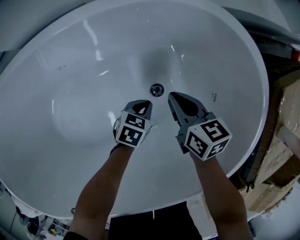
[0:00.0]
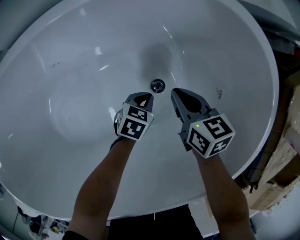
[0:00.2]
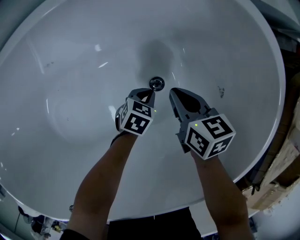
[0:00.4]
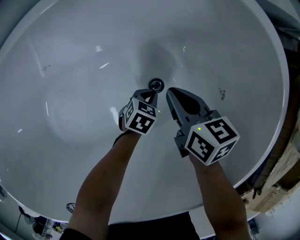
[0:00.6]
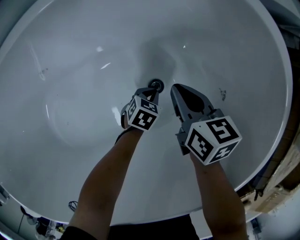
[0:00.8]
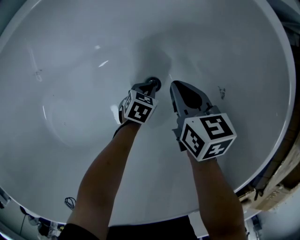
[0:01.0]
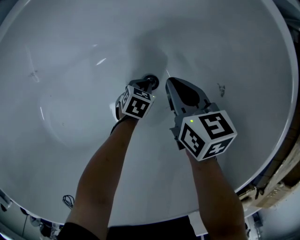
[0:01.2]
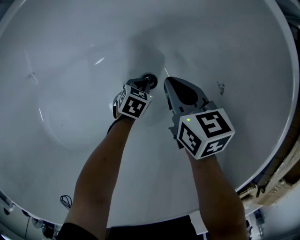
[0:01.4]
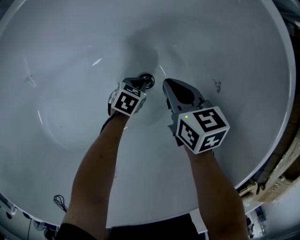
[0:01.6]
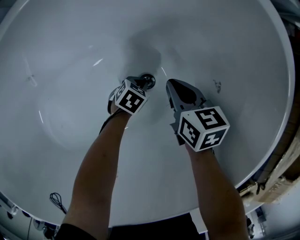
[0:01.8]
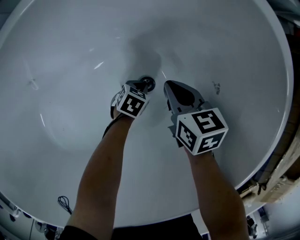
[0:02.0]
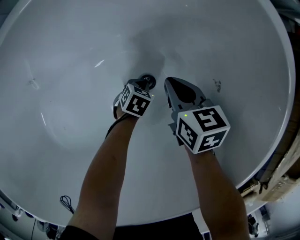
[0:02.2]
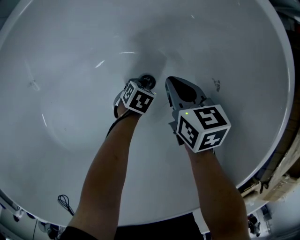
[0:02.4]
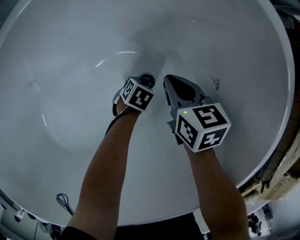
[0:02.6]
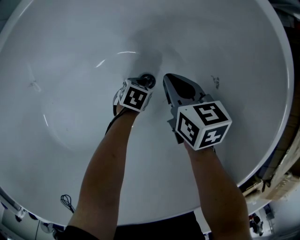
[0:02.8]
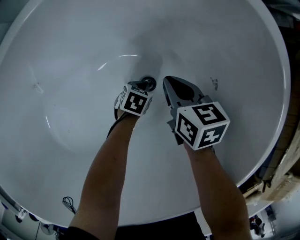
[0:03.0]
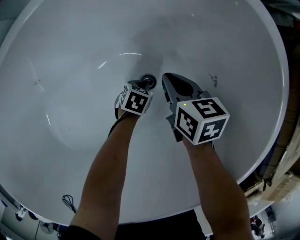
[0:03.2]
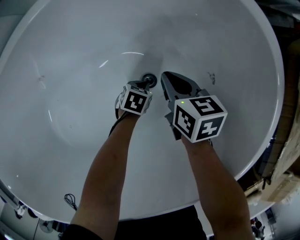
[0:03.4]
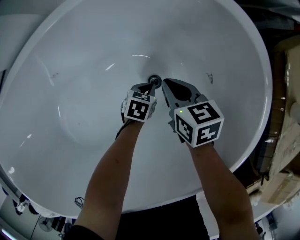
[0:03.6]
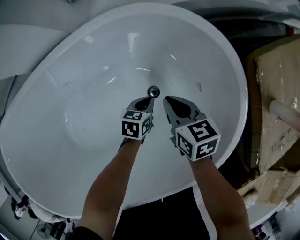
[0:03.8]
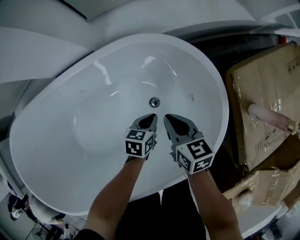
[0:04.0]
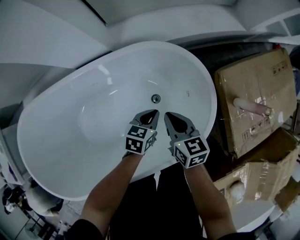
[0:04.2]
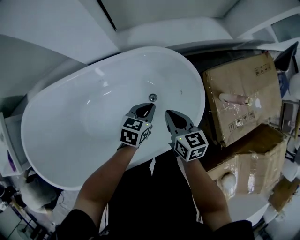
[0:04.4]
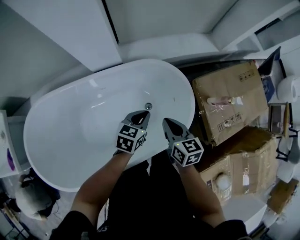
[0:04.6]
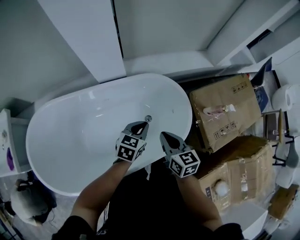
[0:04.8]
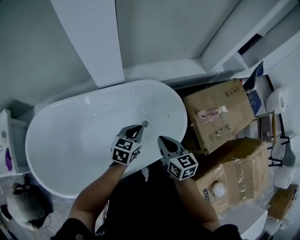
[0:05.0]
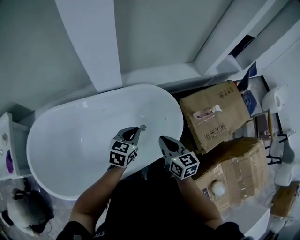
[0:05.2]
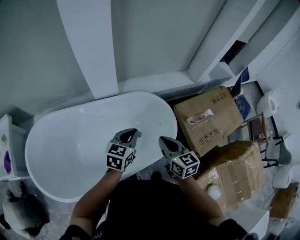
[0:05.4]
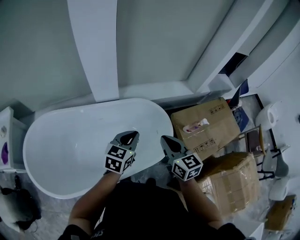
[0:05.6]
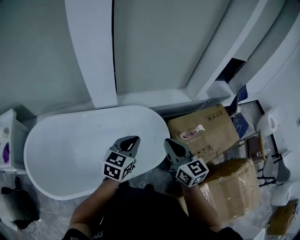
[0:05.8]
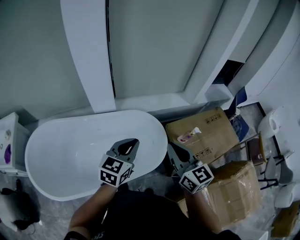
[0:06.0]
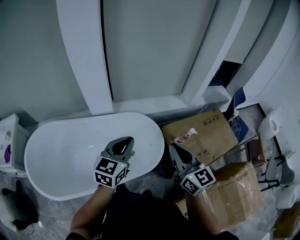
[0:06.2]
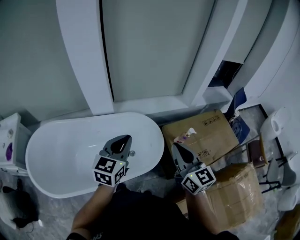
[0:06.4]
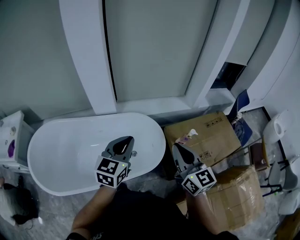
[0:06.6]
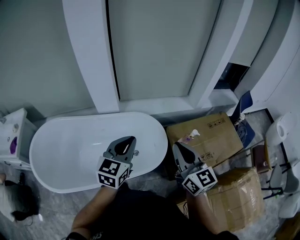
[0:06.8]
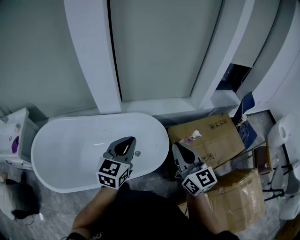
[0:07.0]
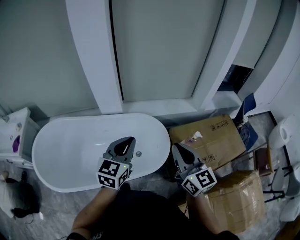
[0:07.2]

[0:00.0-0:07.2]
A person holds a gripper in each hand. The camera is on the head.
0:00.0 to 0:01.4: The right gripper shifts approximately 10 cm downward, while the left gripper shifts about 15 cm downward.
0:01.4 to 0:02.8: The grippers make only small movements.
0:02.8 to 0:04.4: Both grippers travel together upward, approximately 50 cm. The left gripper rotates about 30 degrees.
0:04.4 to 0:05.8: The left gripper goes roughly 40 cm upward and backward, and turns by approximately 30 degrees; the right gripper heads upward, covering some 35 cm, and changes its angle by about 30 degrees.
0:05.8 to 0:07.2: The left gripper goes some 10 cm upward and to the right. Meanwhile the right gripper moves to the right and upward, approximately 10 cm.

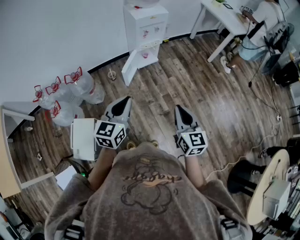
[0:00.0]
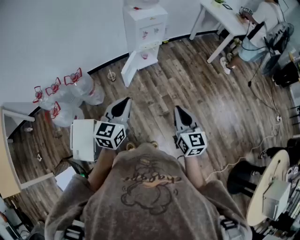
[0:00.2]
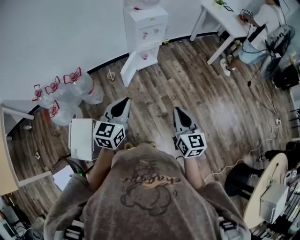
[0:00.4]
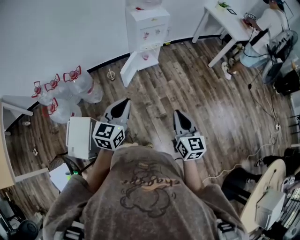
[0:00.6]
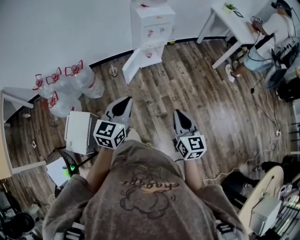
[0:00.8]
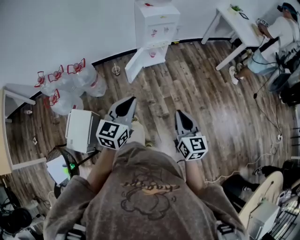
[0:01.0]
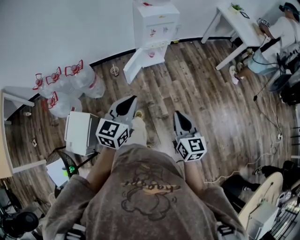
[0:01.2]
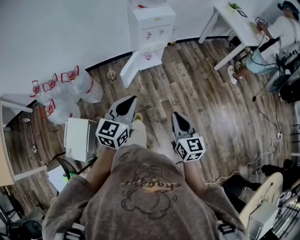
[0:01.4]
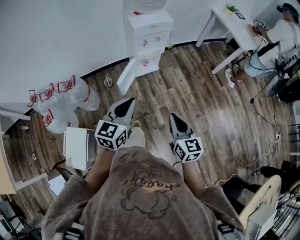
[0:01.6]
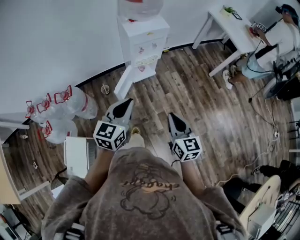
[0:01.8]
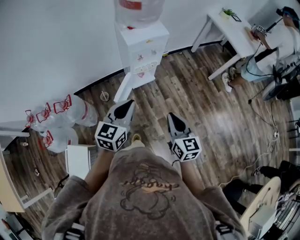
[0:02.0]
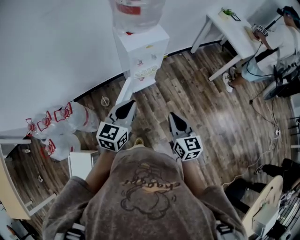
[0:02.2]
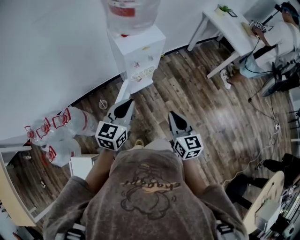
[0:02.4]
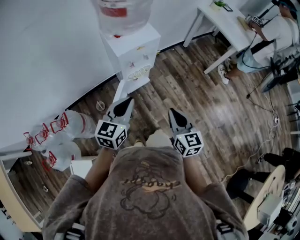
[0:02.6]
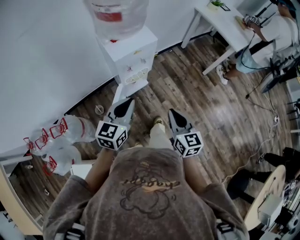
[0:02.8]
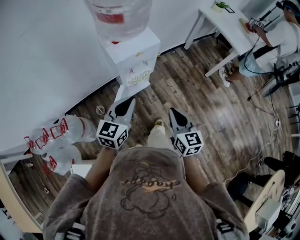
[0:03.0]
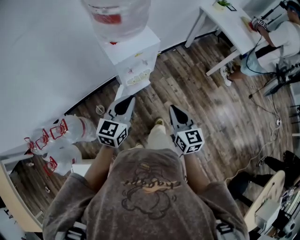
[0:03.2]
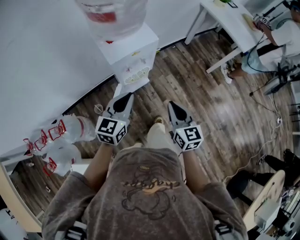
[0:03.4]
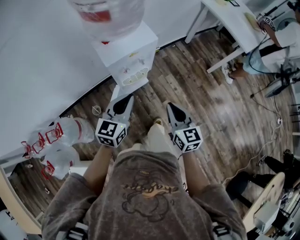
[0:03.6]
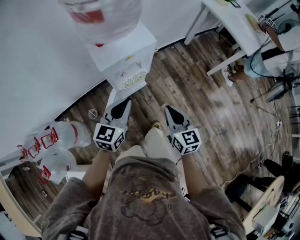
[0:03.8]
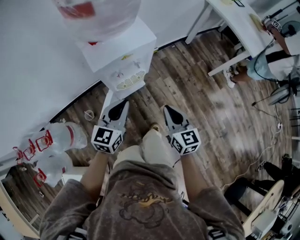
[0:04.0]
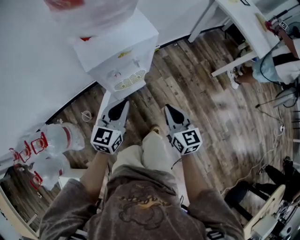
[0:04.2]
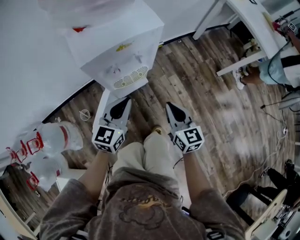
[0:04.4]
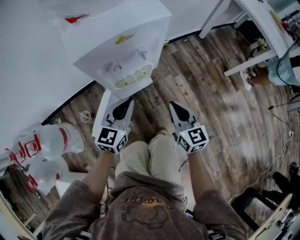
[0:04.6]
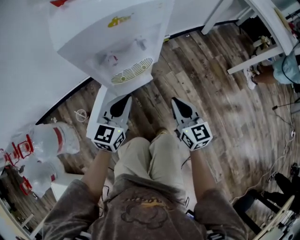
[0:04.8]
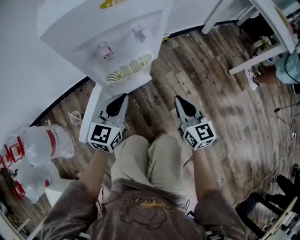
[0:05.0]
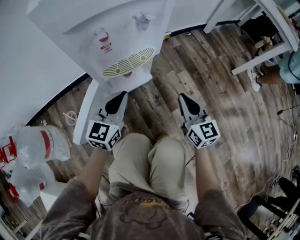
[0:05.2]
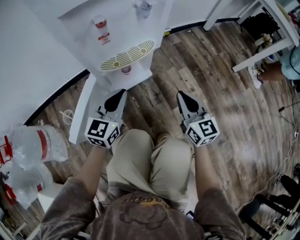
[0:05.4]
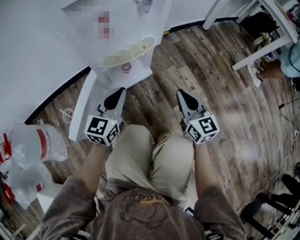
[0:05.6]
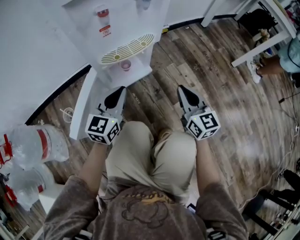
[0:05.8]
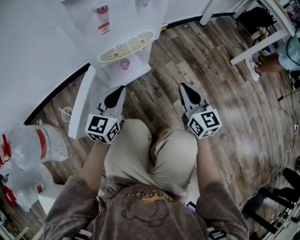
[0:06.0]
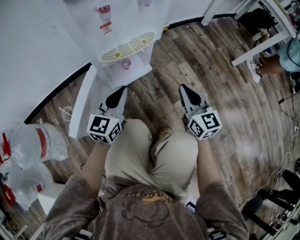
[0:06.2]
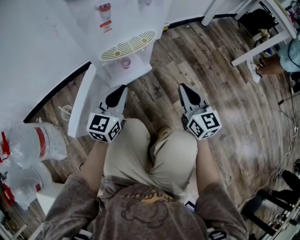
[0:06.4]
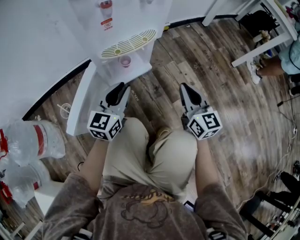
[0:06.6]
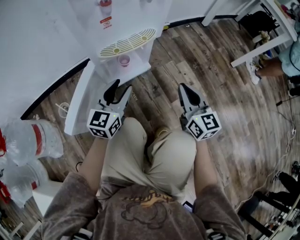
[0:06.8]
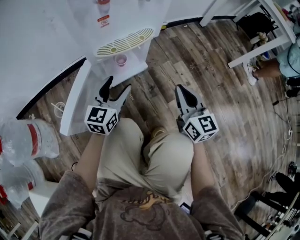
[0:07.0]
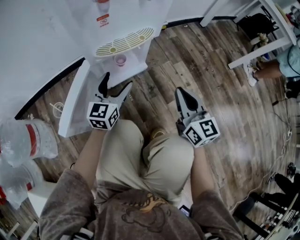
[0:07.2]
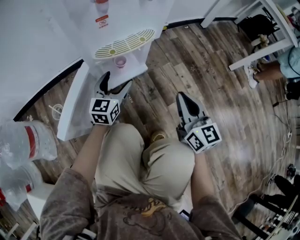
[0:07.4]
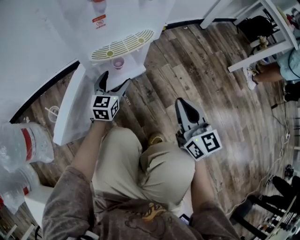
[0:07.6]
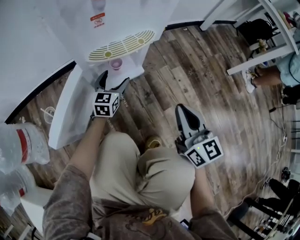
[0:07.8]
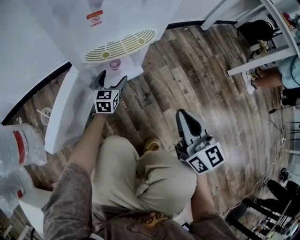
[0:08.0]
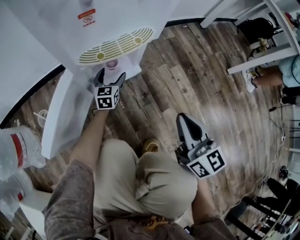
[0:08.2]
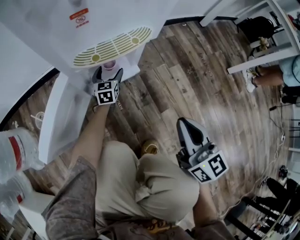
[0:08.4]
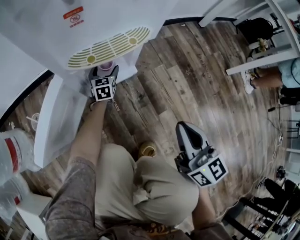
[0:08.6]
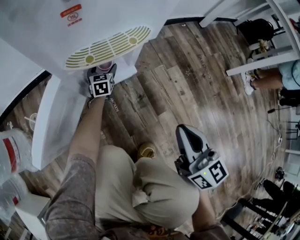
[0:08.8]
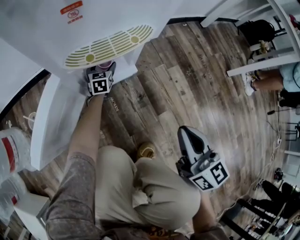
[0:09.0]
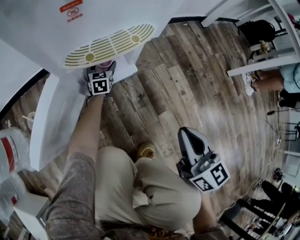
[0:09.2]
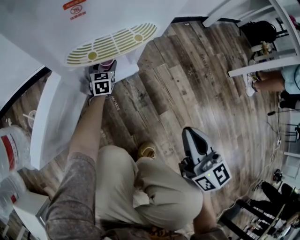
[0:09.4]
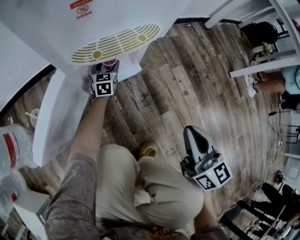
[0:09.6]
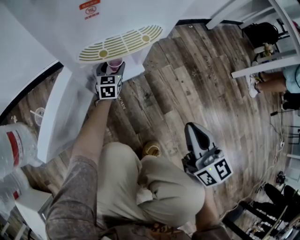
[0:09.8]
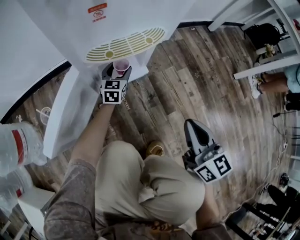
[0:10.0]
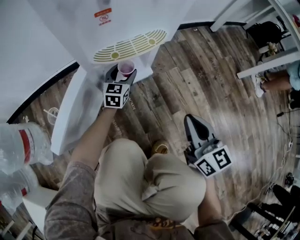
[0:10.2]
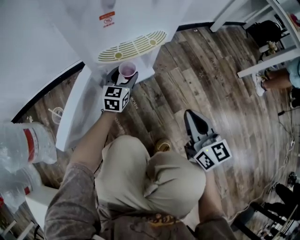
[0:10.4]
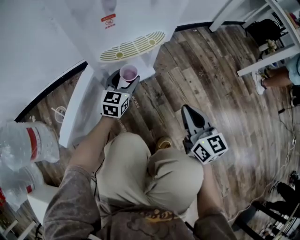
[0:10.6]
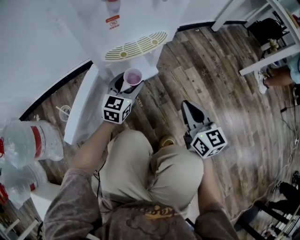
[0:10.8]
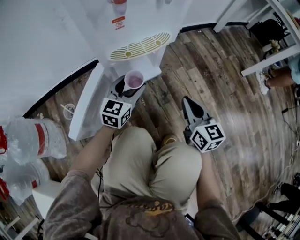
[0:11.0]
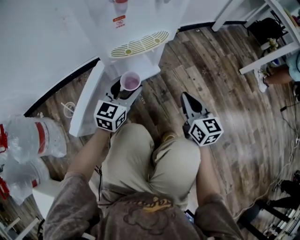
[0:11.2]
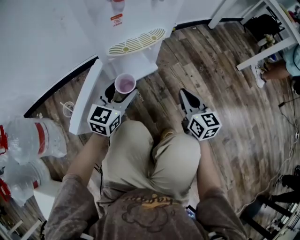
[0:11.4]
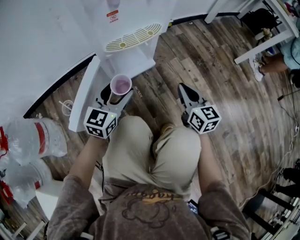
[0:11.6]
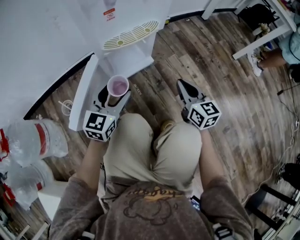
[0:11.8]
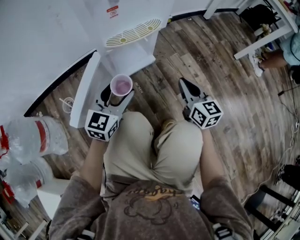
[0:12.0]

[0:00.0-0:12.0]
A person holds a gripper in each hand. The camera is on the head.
0:00.0 to 0:01.6: Both grippers travel together forward, approximately 15 cm.
0:01.6 to 0:03.0: Both grippers travel together forward, some 30 cm.
0:03.0 to 0:04.4: Both grippers move downward and forward, some 30 cm.
0:04.4 to 0:06.0: Both grippers move downward, about 30 cm.
0:06.0 to 0:07.6: The left gripper goes some 15 cm downward and forward, and opens up.
0:07.6 to 0:09.0: The left gripper goes about 25 cm downward and forward, and turns by about 20 degrees.
0:09.0 to 0:10.4: The left gripper moves upward and backward, about 20 cm, and changes its angle by about 20 degrees.
0:10.4 to 0:12.0: The left gripper shifts about 25 cm backward and upward.

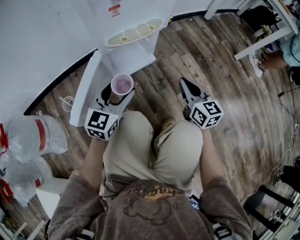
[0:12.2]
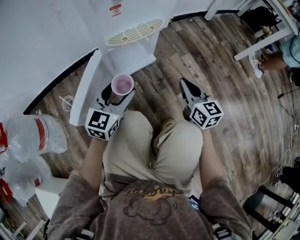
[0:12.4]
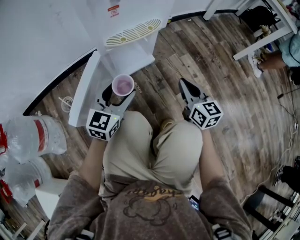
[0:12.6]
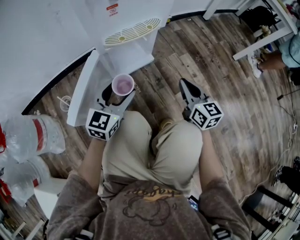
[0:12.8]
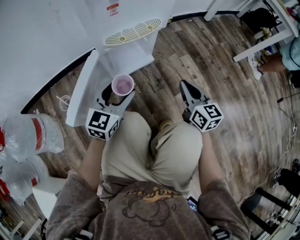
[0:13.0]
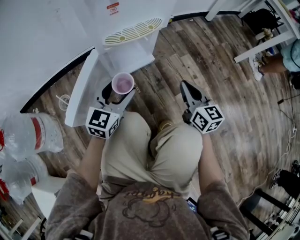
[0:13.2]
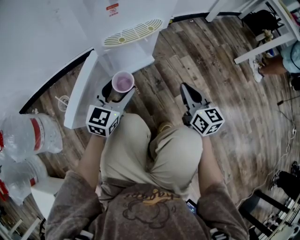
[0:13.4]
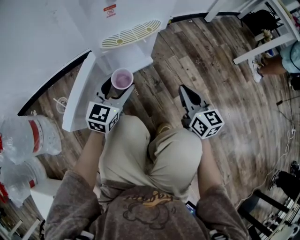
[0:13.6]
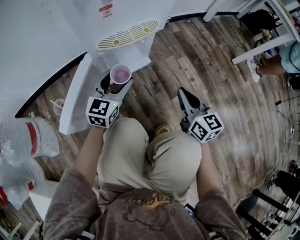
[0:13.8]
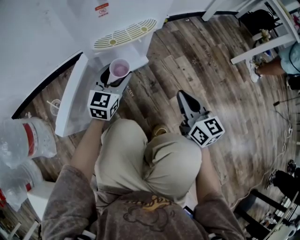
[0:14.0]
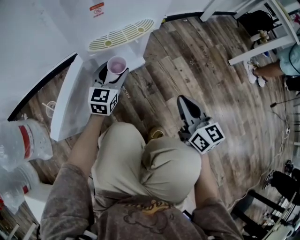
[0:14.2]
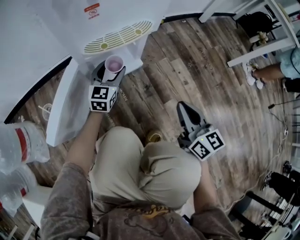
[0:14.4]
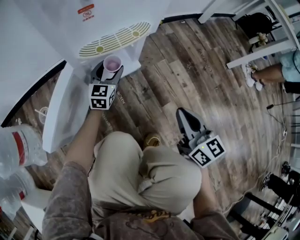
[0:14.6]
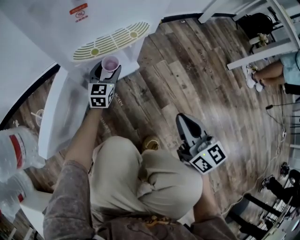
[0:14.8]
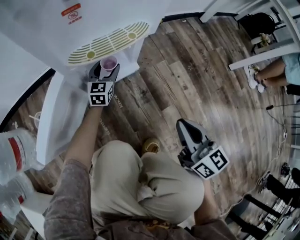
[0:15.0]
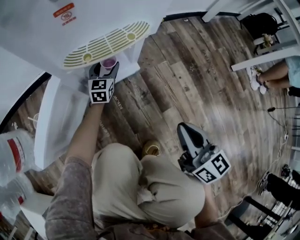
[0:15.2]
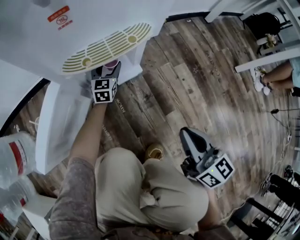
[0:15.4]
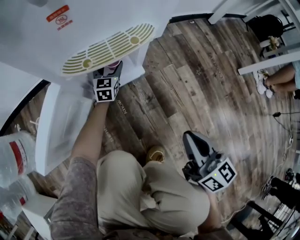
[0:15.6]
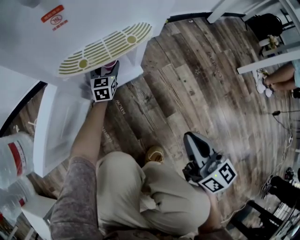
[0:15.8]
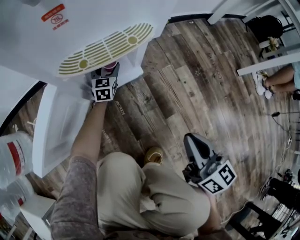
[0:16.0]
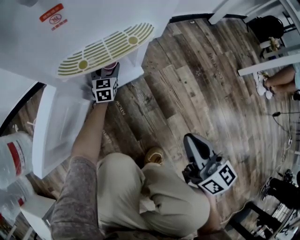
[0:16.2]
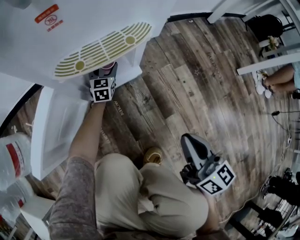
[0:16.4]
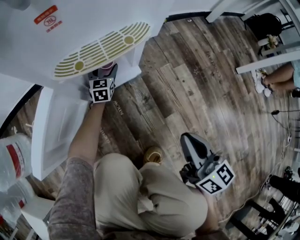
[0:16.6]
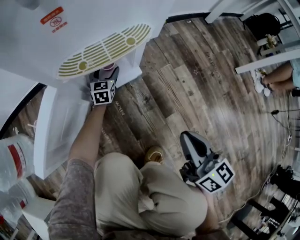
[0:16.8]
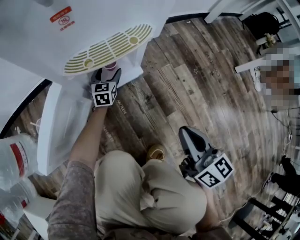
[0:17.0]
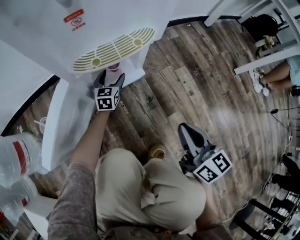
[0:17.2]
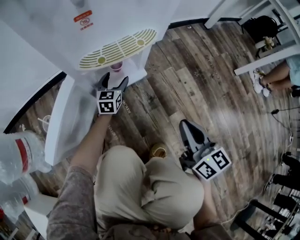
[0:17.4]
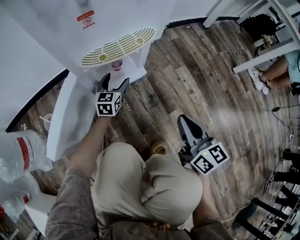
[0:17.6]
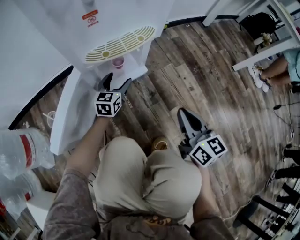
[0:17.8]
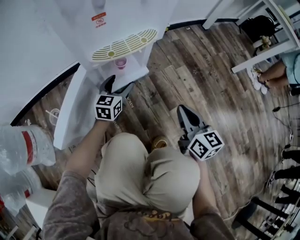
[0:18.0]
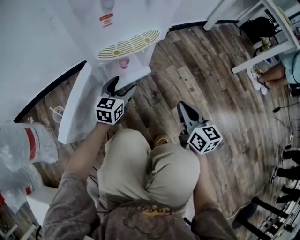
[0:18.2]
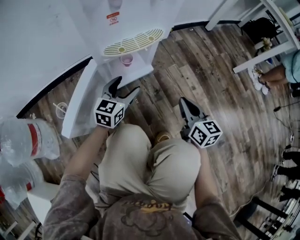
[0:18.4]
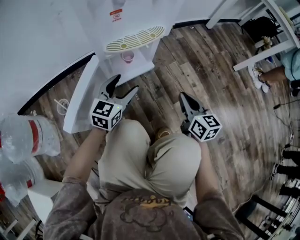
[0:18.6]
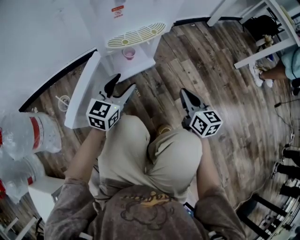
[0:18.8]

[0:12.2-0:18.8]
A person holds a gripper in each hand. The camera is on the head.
0:12.2 to 0:13.8: The left gripper moves forward, about 5 cm.
0:13.8 to 0:15.4: The left gripper is displaced forward and downward by some 30 cm.
0:15.4 to 0:17.2: There are only small adjustments of the grippers.
0:17.2 to 0:18.8: The left gripper heads upward and backward, covering roughly 30 cm, and rotates roughly 20 degrees.
